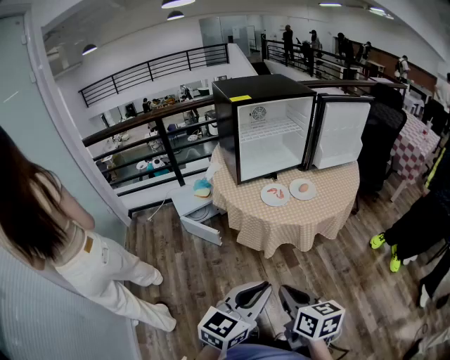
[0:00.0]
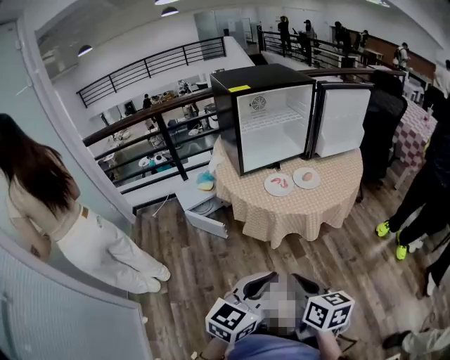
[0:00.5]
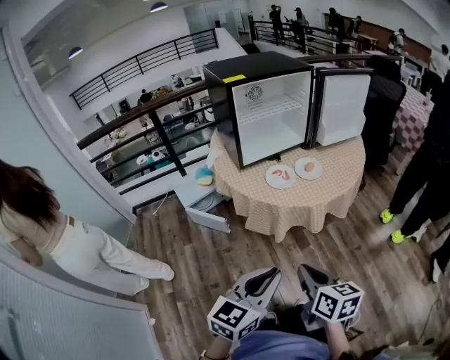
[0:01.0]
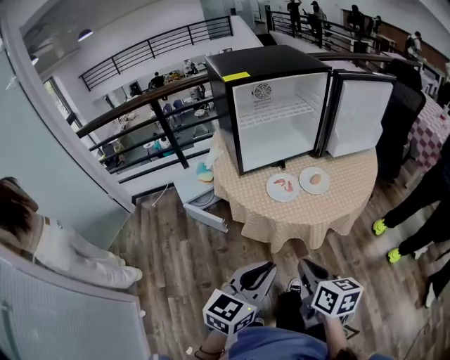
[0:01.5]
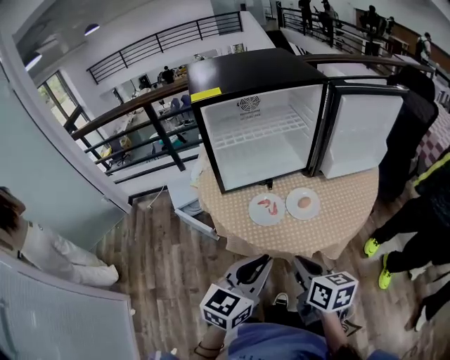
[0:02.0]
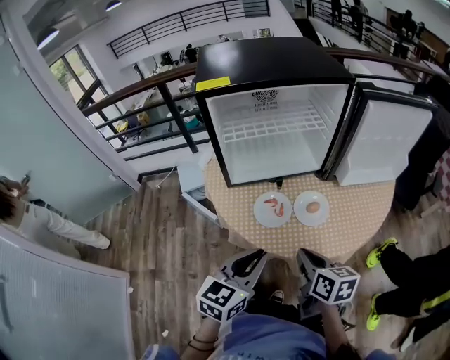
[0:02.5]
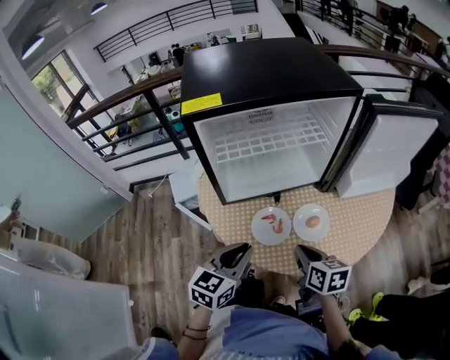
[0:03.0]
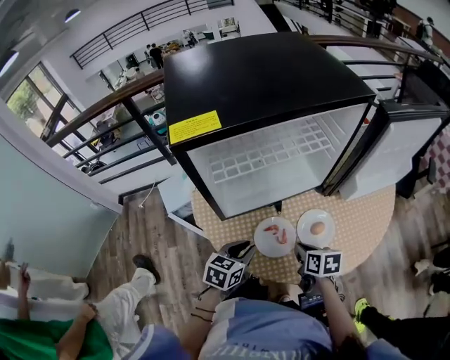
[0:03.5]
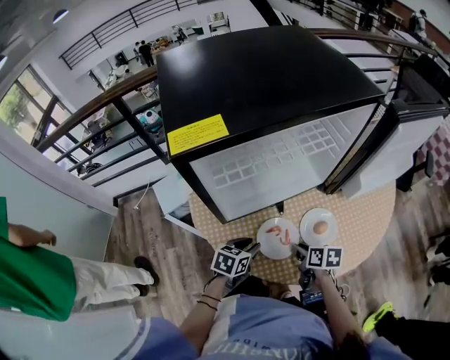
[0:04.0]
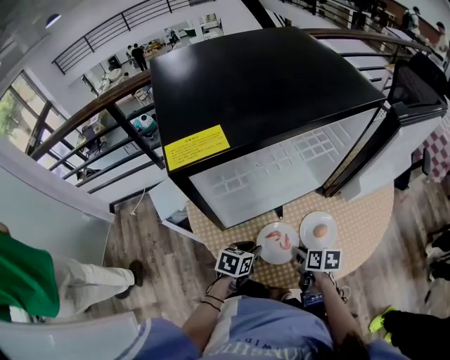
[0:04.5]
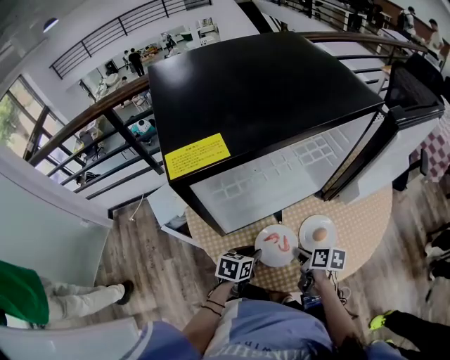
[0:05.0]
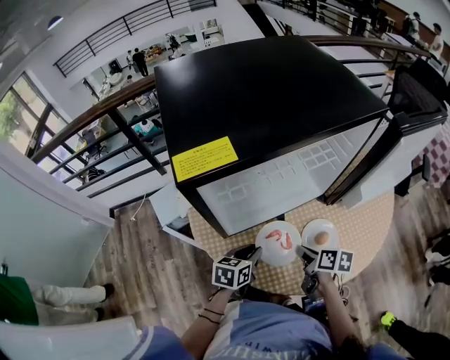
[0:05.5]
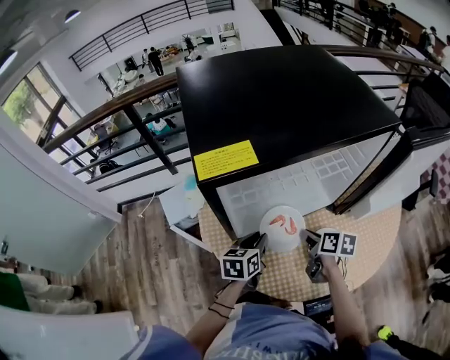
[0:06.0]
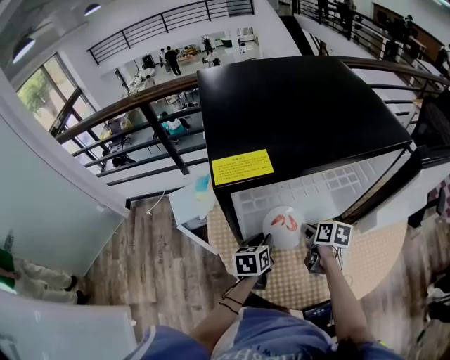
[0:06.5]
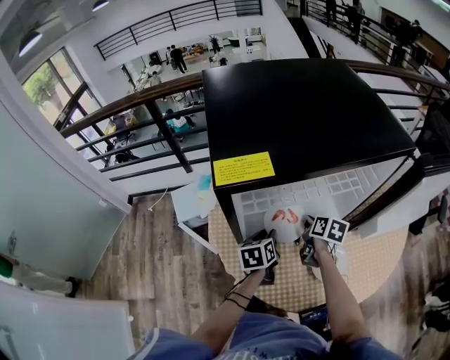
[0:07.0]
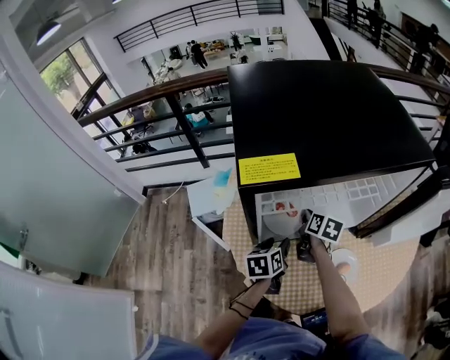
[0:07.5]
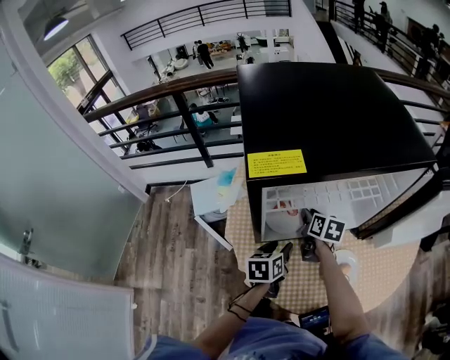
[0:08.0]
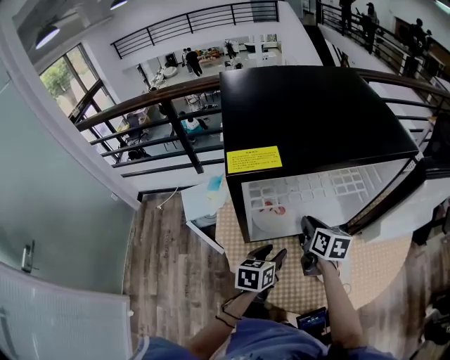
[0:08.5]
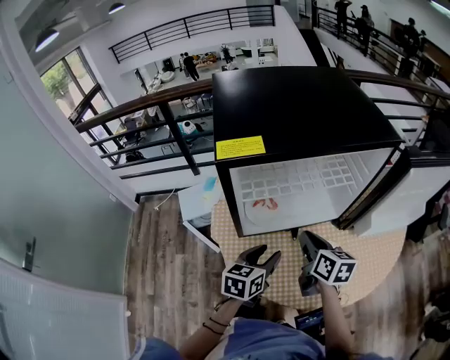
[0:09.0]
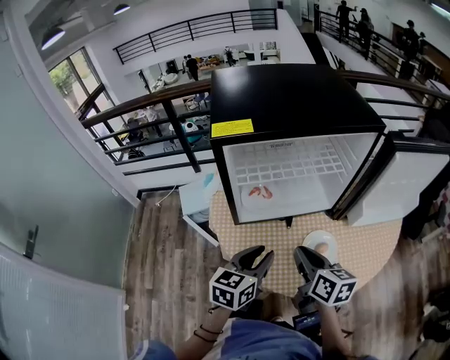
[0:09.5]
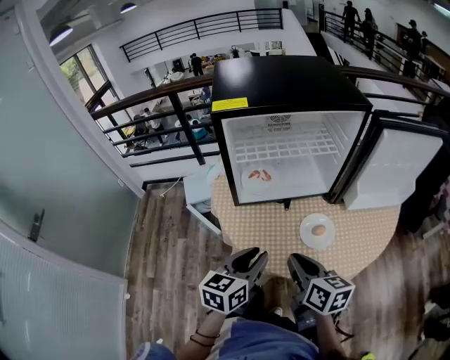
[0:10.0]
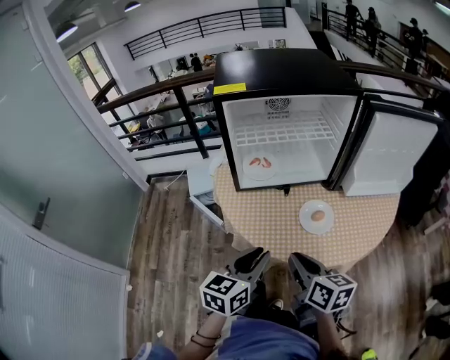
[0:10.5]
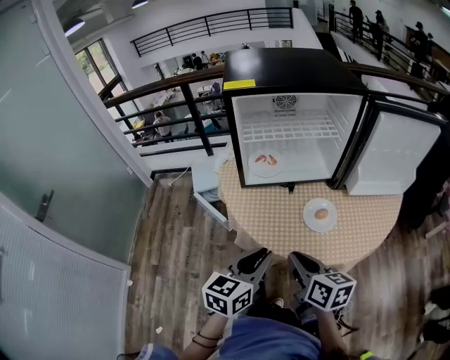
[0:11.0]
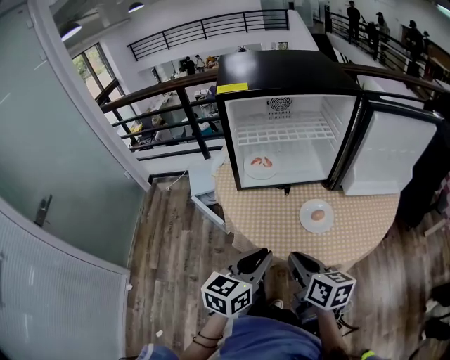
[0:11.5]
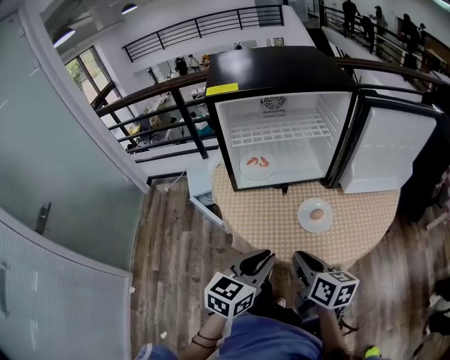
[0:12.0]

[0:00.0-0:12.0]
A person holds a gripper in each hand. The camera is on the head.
0:00.0 to 0:02.0: Both grippers move forward, approximately 30 cm.
0:02.0 to 0:04.0: The left gripper travels downward and forward by approximately 35 cm, points its fingers roughly 30 degrees further downward, and opens. The right gripper heads forward and downward, covering approximately 30 cm, swivels about 30 degrees, and opens up.
0:04.0 to 0:06.0: The grippers both shift forward and upward by approximately 10 cm. The left gripper turns by about 20 degrees.
0:06.0 to 0:08.0: The right gripper goes roughly 15 cm forward and to the left, while the left gripper opens its fingers.
0:08.0 to 0:10.0: The right gripper moves backward, roughly 35 cm, and turns by about 20 degrees. The left gripper travels backward and upward by some 25 cm, turns by approximately 20 degrees, and closes its fingers.
0:10.0 to 0:12.0: Both grippers move backward, some 5 cm.

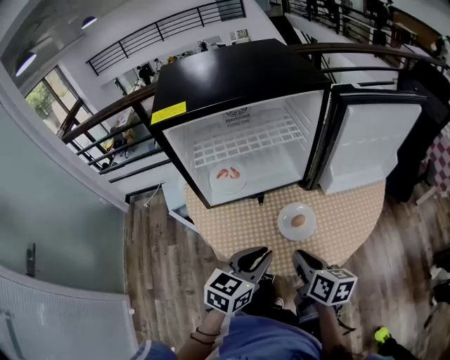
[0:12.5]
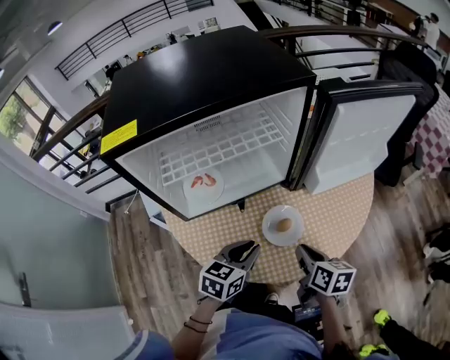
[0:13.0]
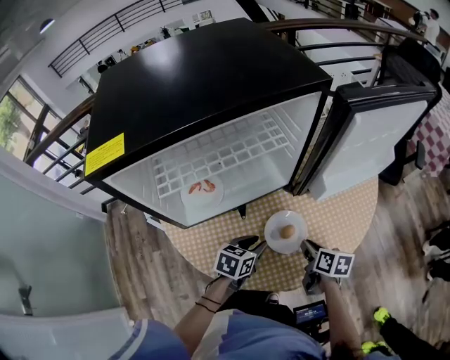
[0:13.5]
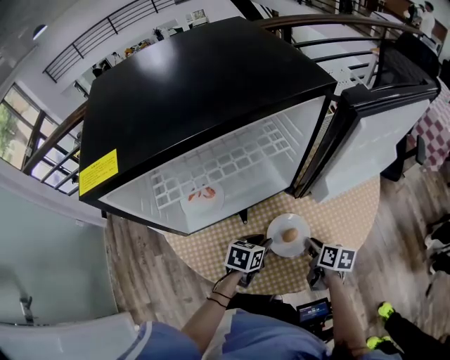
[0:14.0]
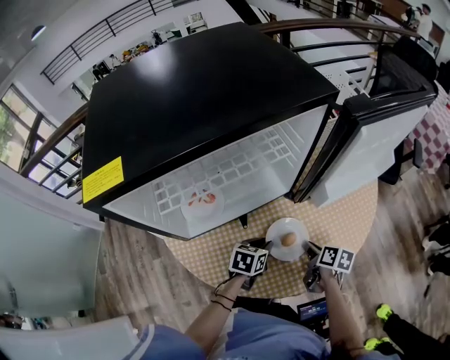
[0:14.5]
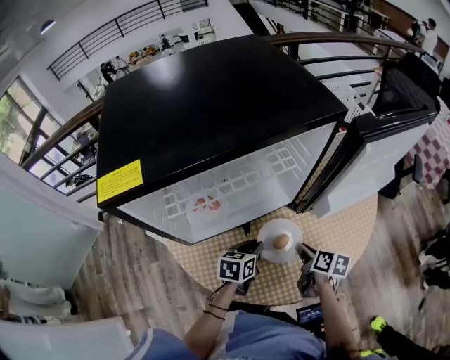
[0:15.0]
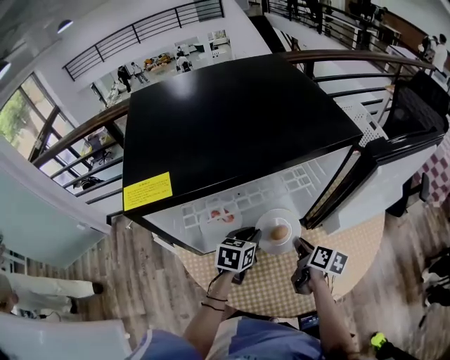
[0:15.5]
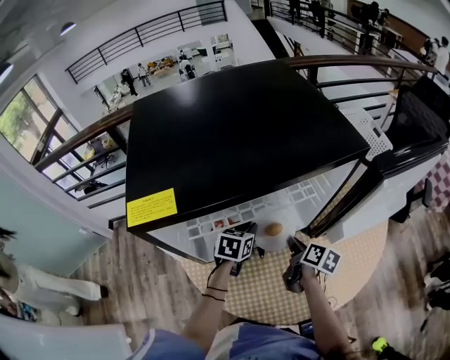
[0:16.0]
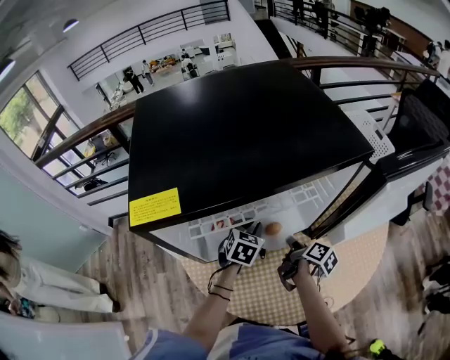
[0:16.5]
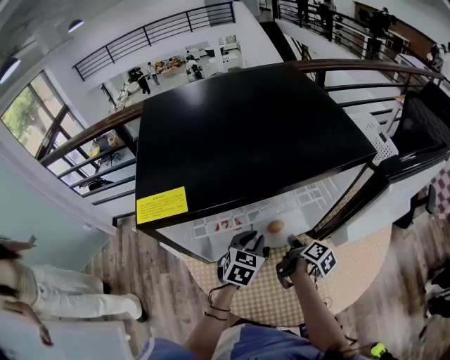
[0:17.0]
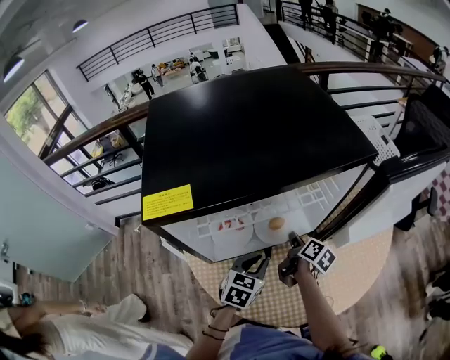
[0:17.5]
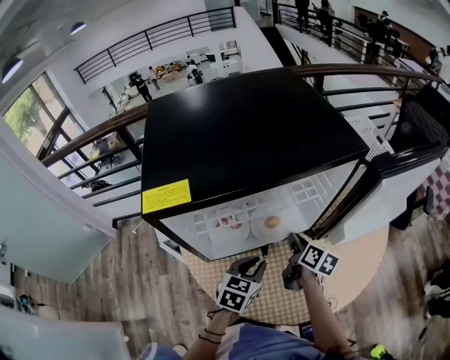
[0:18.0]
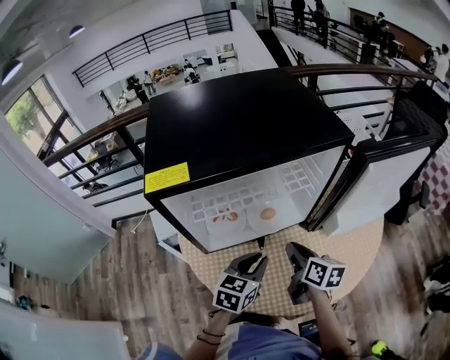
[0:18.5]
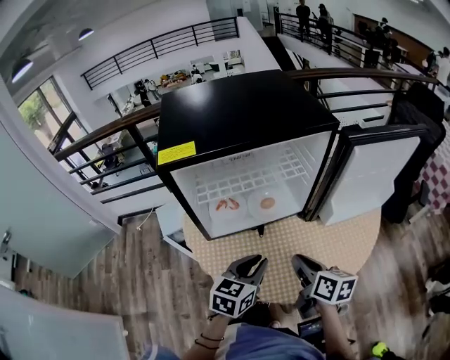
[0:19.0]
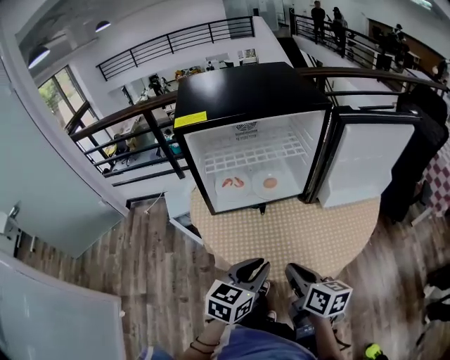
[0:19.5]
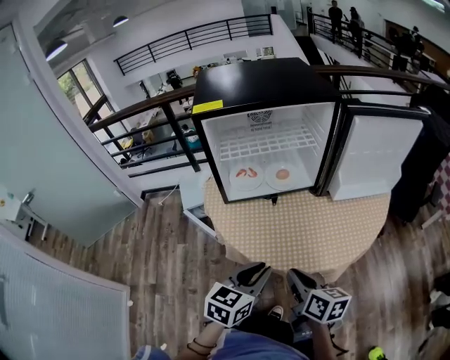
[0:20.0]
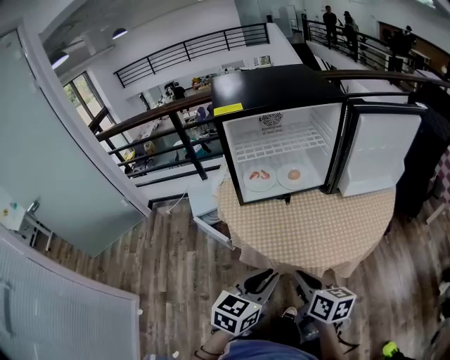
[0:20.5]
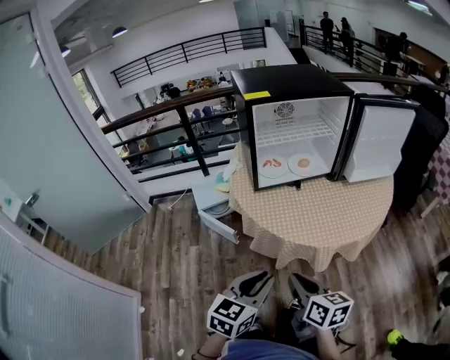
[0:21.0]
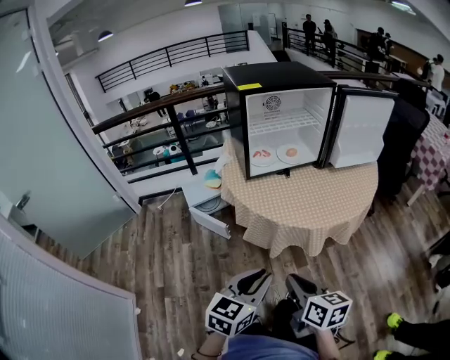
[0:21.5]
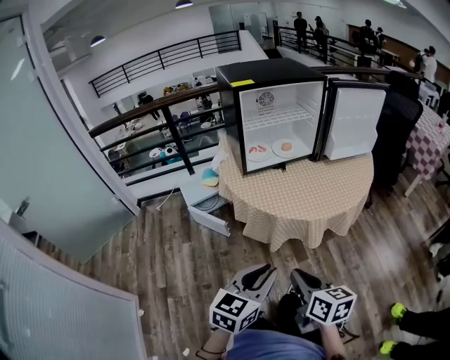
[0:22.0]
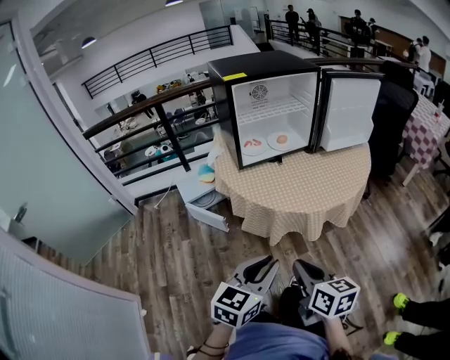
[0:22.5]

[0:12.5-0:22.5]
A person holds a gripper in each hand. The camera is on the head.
0:12.5 to 0:14.5: The grippers both shift downward and forward by about 25 cm. The left gripper swivels approximately 30 degrees. The right gripper changes its angle by roughly 30 degrees.
0:14.5 to 0:16.5: The right gripper is displaced to the left, forward and upward by about 20 cm, and rotates approximately 30 degrees; the left gripper moves forward, to the left and upward, approximately 20 cm, and swivels roughly 30 degrees.
0:16.5 to 0:18.5: The left gripper moves backward and upward, about 20 cm; the right gripper moves upward and backward, roughly 15 cm, and twists roughly 40 degrees counterclockwise, seen from behind.
0:18.5 to 0:20.5: The grippers both shift backward by approximately 30 cm.
0:20.5 to 0:22.5: The right gripper goes some 20 cm backward, while the left gripper travels backward and to the left by approximately 20 cm.

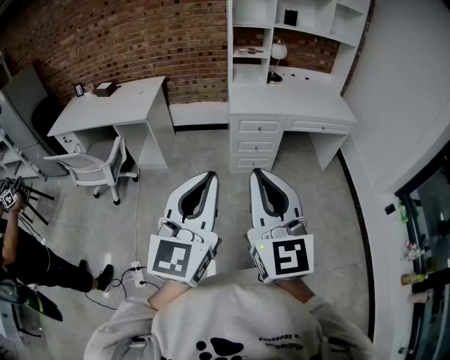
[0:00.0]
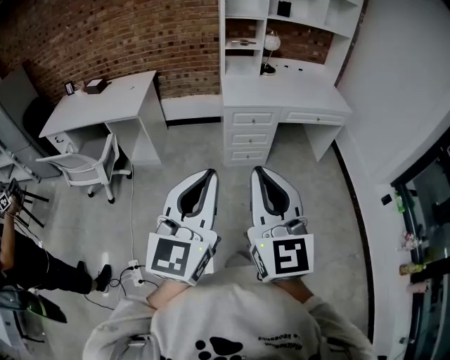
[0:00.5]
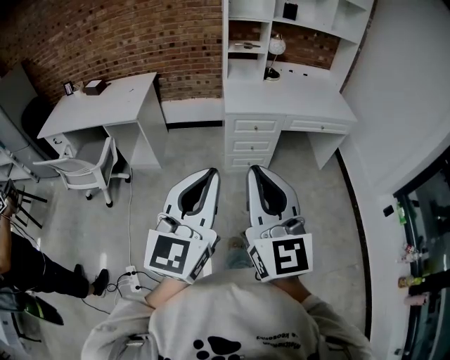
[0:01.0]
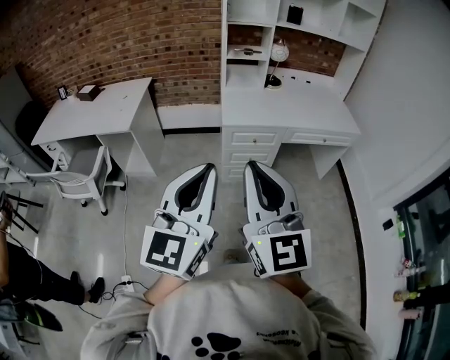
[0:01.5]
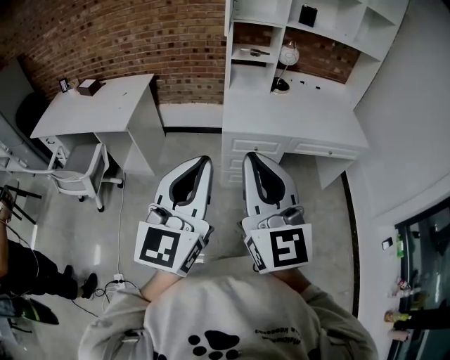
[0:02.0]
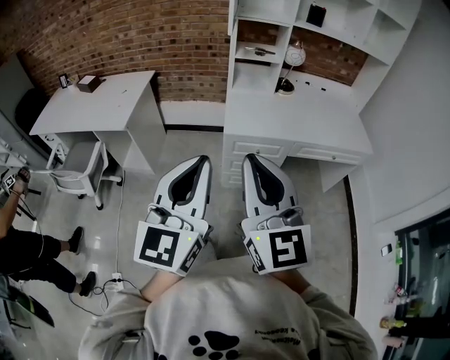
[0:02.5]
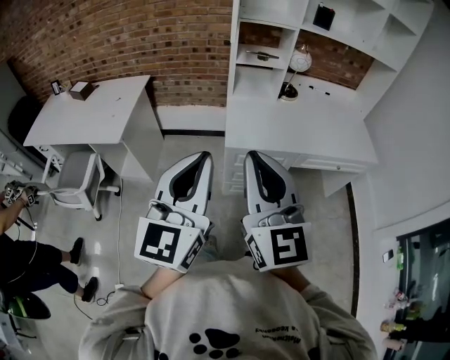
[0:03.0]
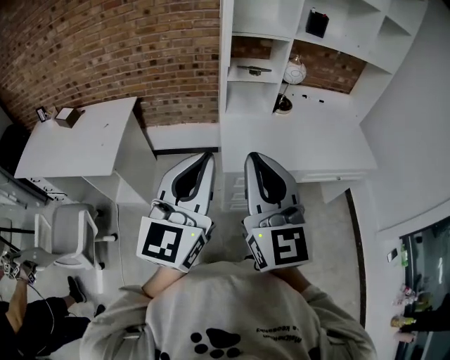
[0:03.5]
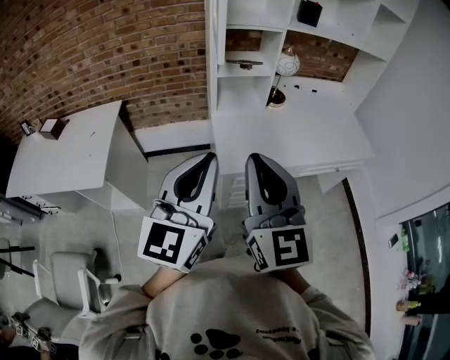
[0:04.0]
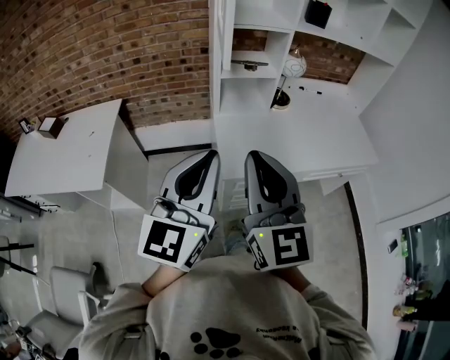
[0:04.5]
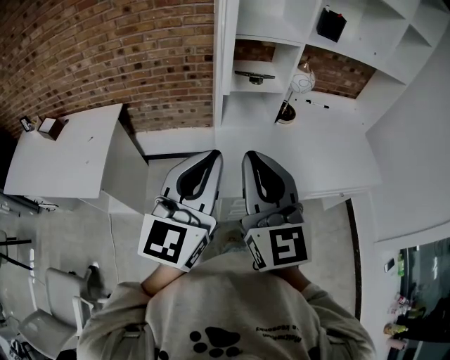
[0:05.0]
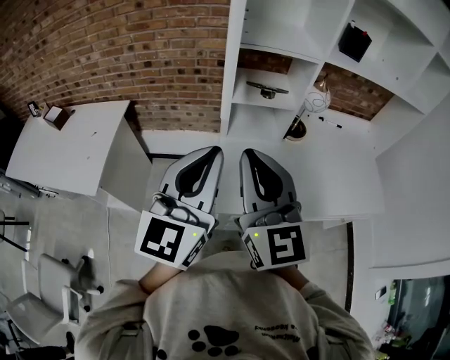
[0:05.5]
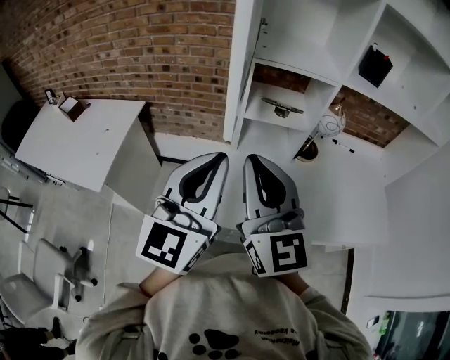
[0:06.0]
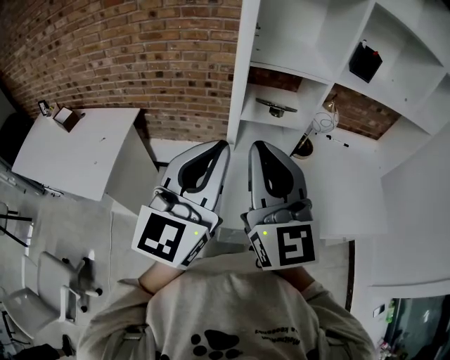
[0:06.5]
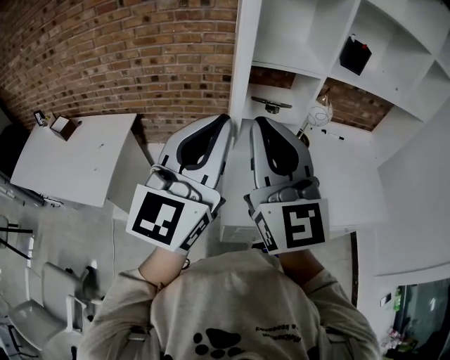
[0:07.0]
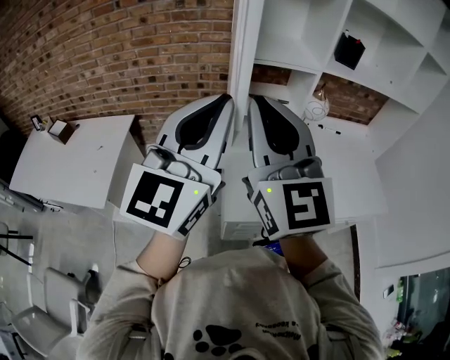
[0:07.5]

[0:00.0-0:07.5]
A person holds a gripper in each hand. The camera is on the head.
0:00.0 to 0:02.0: The two grippers go some 30 cm forward.
0:02.0 to 0:04.0: Both grippers move forward, approximately 30 cm.
0:04.0 to 0:05.5: Both grippers travel together forward, roughly 20 cm.
0:05.5 to 0:07.5: Both grippers move upward, roughly 10 cm.
